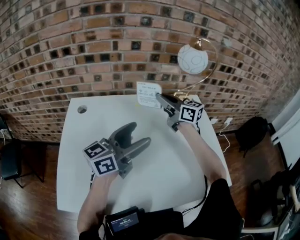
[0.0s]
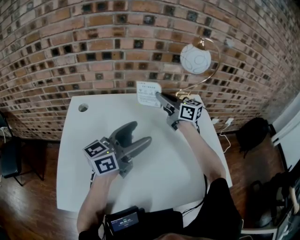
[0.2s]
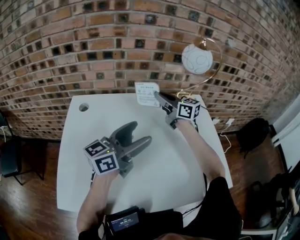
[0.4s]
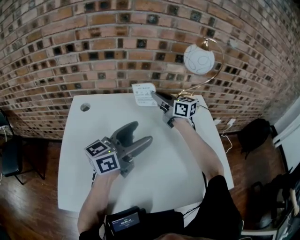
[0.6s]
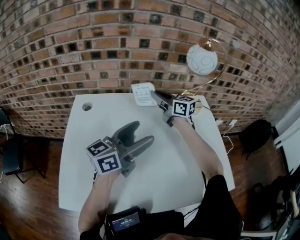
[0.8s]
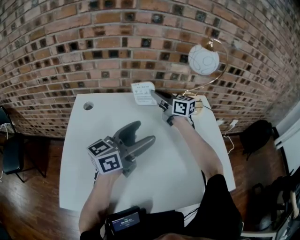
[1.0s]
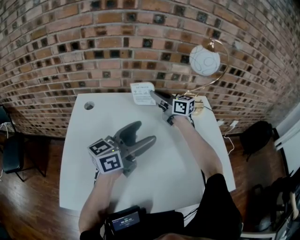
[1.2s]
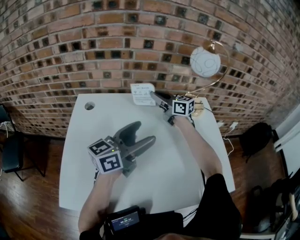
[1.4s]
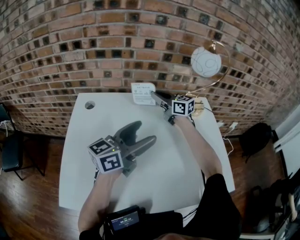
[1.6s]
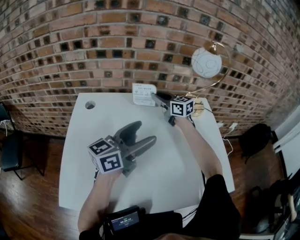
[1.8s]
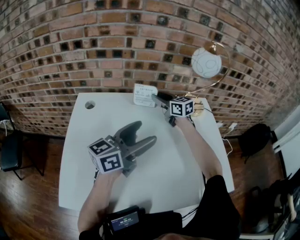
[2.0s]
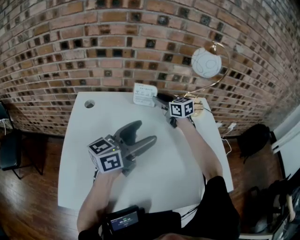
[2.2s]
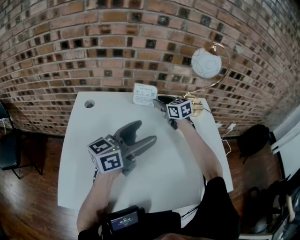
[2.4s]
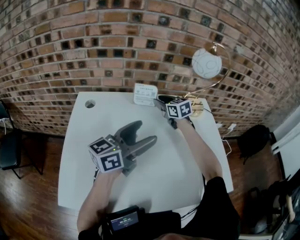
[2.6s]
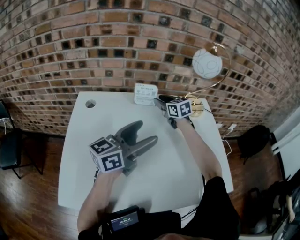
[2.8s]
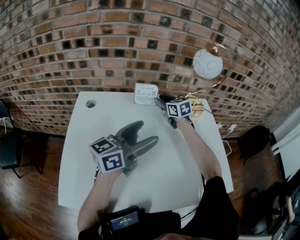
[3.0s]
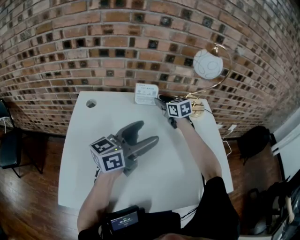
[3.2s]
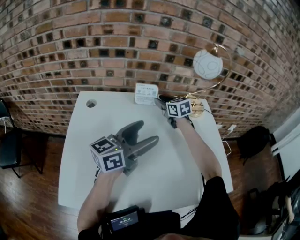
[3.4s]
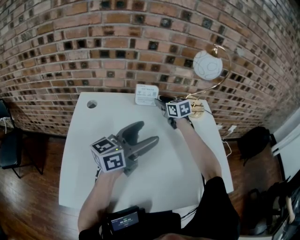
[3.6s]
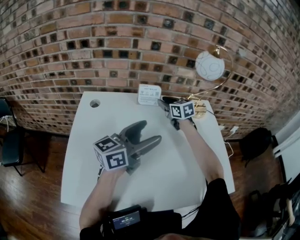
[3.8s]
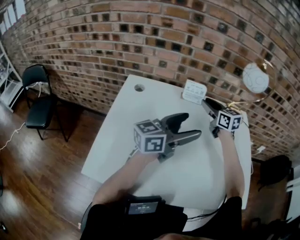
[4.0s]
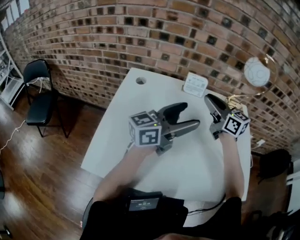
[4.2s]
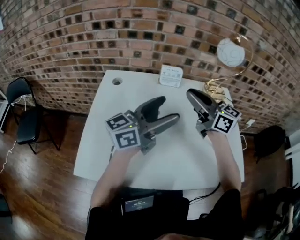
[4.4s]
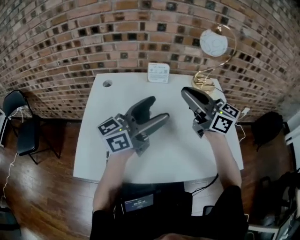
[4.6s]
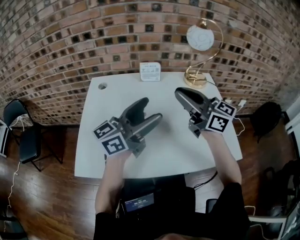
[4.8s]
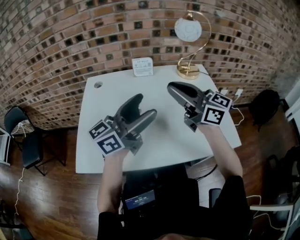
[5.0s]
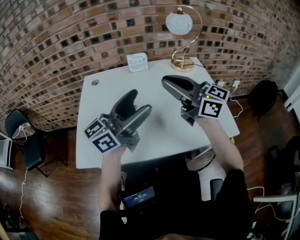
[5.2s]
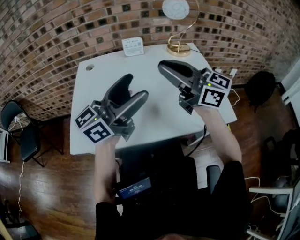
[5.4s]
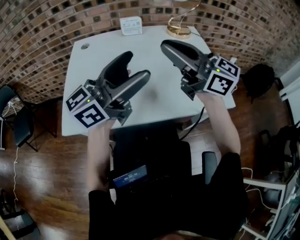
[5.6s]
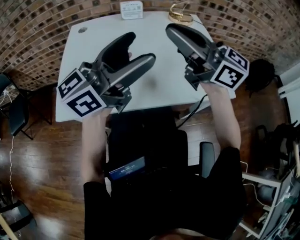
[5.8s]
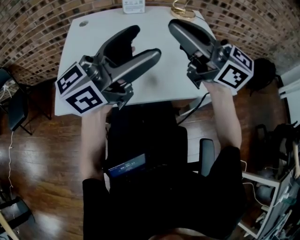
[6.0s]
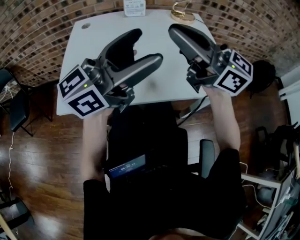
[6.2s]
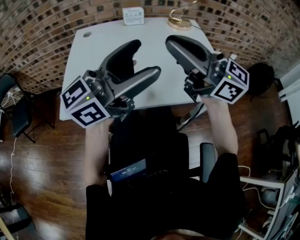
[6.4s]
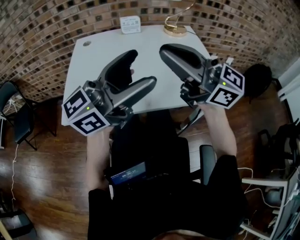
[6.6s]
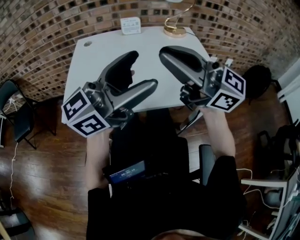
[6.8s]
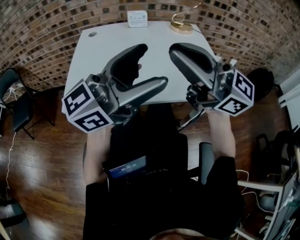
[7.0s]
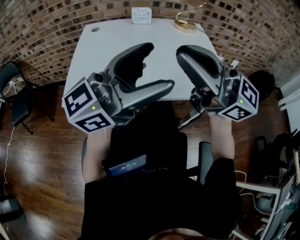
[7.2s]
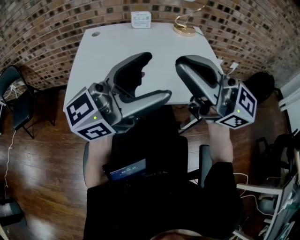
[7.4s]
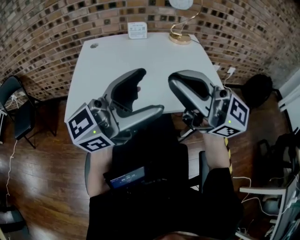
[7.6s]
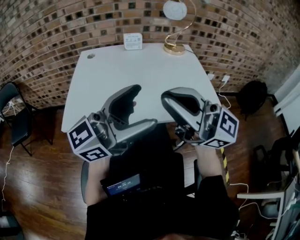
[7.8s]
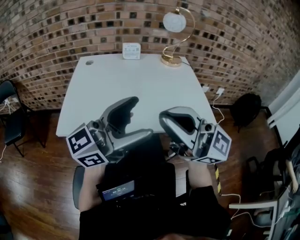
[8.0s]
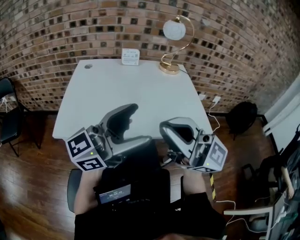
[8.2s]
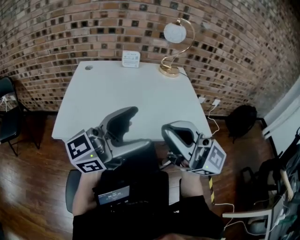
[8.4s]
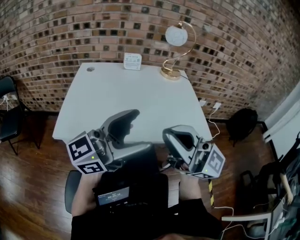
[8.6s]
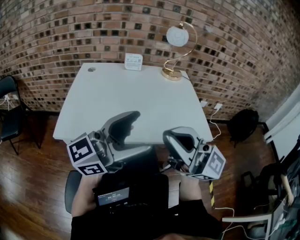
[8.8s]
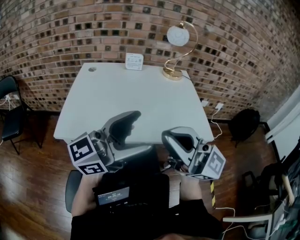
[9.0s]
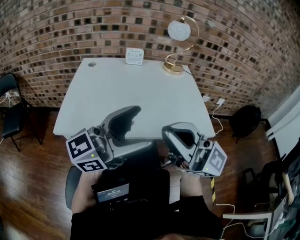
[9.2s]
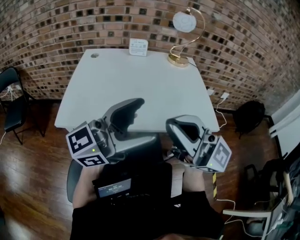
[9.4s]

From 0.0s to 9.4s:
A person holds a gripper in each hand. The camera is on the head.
From 0.0s to 1.6s: The right gripper travels forward, to the left and downward by some 10 cm.
From 1.6s to 3.2s: The right gripper shifts by roughly 5 cm, rotates roughly 30 degrees, and opens its fingers.
From 3.2s to 4.8s: The right gripper travels backward and upward by approximately 35 cm, tilts its fingers about 30 degrees upward, and closes its fingers. The left gripper shifts about 10 cm backward and upward.
From 4.8s to 6.2s: The grippers both shift backward and upward by some 15 cm.
From 6.2s to 7.8s: The right gripper changes place by roughly 15 cm, while the left gripper changes place by approximately 10 cm.
From 7.8s to 9.4s: There are only small adjustments of the grippers.

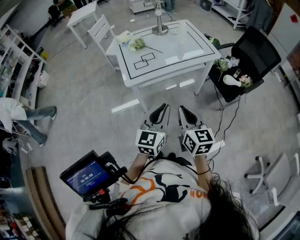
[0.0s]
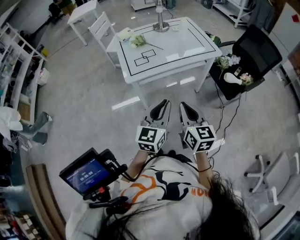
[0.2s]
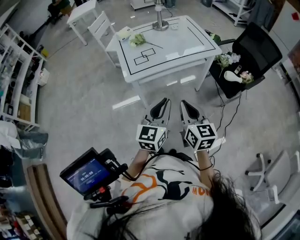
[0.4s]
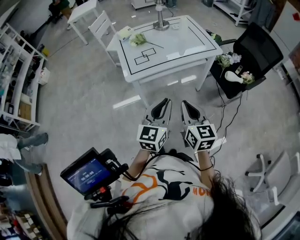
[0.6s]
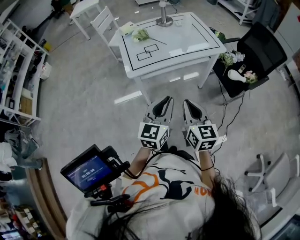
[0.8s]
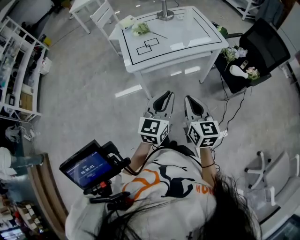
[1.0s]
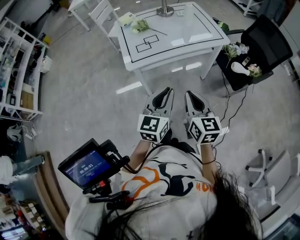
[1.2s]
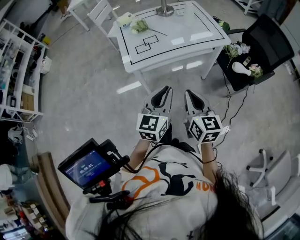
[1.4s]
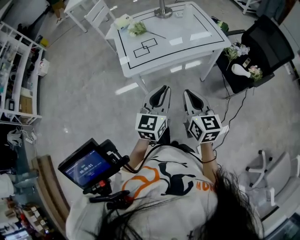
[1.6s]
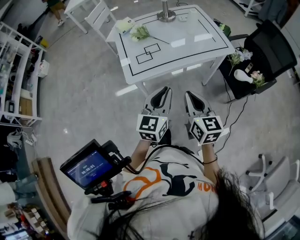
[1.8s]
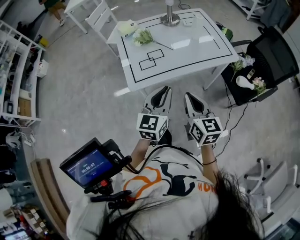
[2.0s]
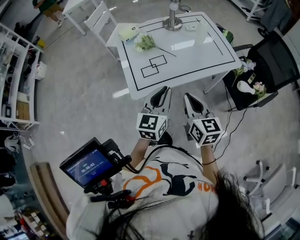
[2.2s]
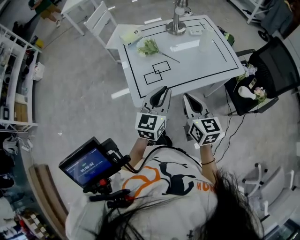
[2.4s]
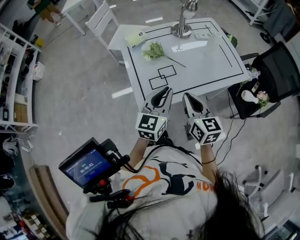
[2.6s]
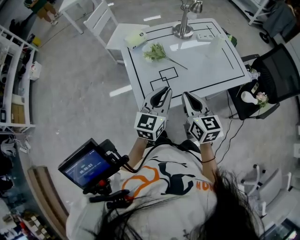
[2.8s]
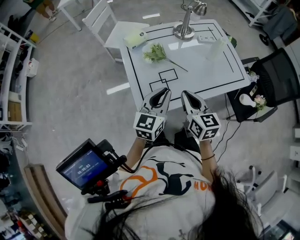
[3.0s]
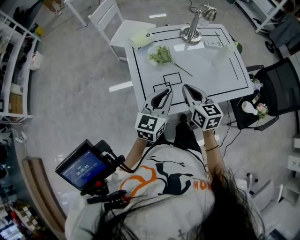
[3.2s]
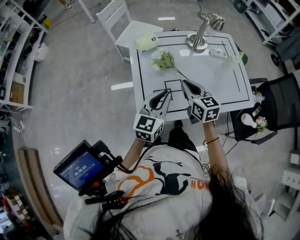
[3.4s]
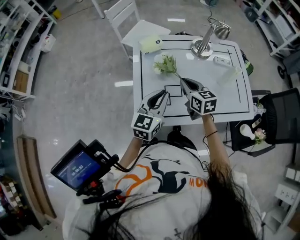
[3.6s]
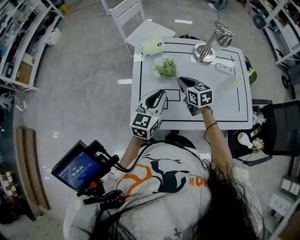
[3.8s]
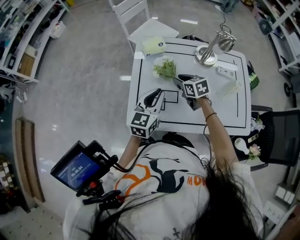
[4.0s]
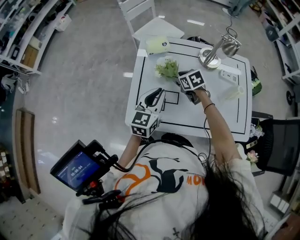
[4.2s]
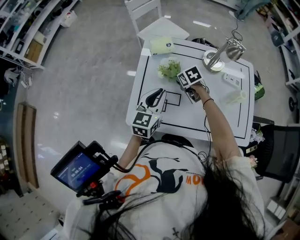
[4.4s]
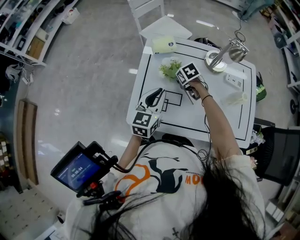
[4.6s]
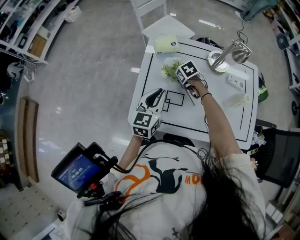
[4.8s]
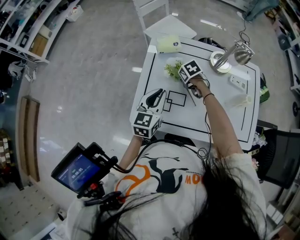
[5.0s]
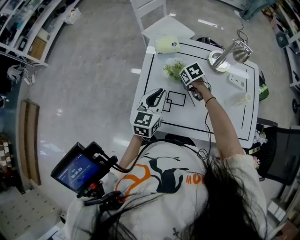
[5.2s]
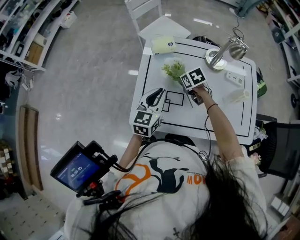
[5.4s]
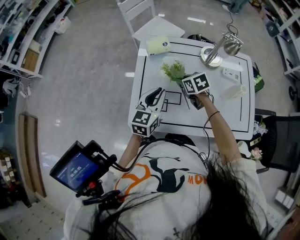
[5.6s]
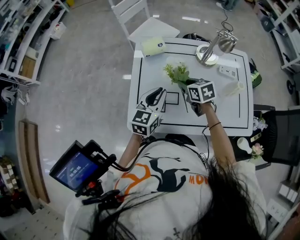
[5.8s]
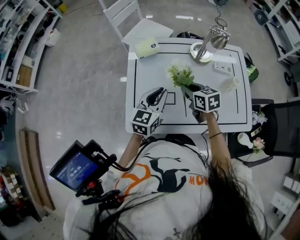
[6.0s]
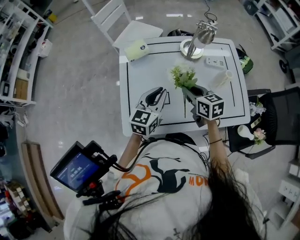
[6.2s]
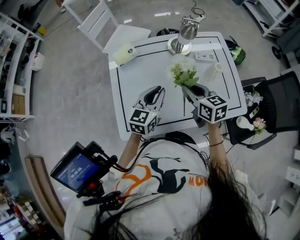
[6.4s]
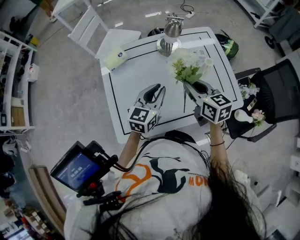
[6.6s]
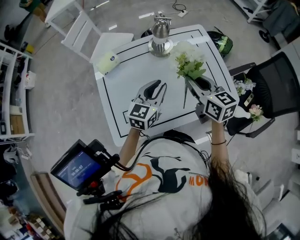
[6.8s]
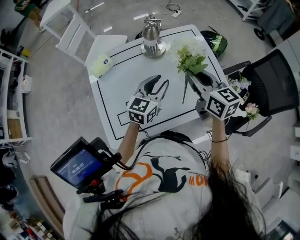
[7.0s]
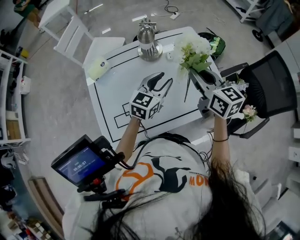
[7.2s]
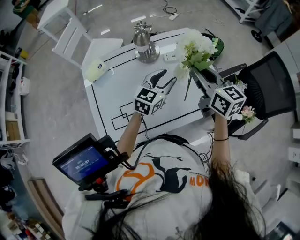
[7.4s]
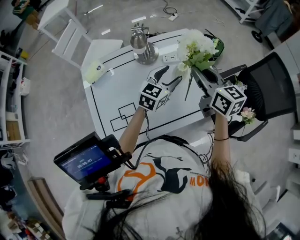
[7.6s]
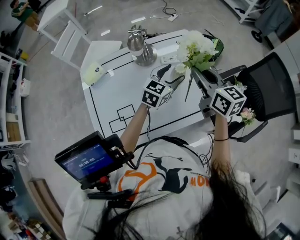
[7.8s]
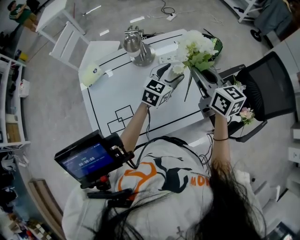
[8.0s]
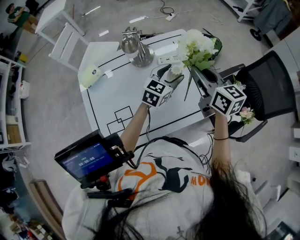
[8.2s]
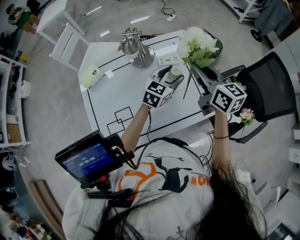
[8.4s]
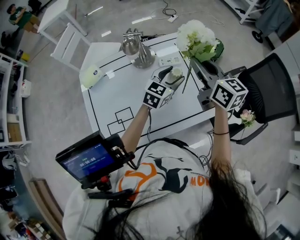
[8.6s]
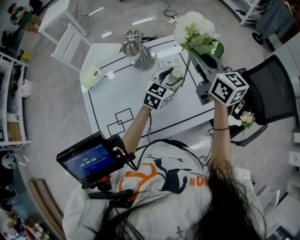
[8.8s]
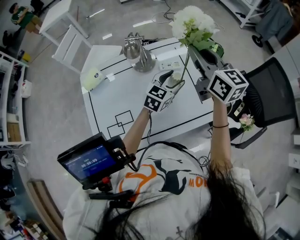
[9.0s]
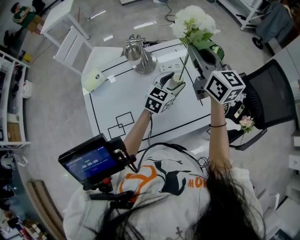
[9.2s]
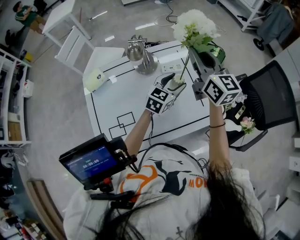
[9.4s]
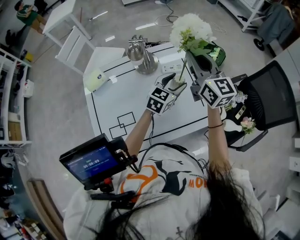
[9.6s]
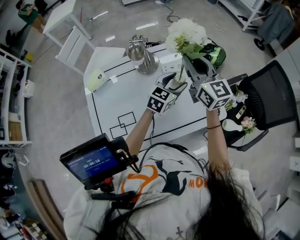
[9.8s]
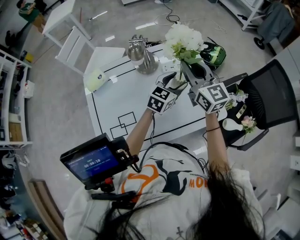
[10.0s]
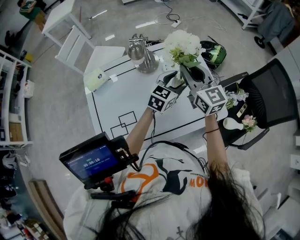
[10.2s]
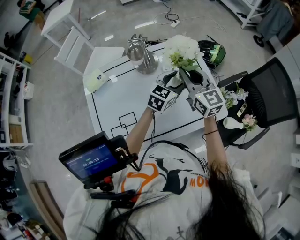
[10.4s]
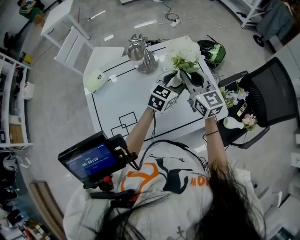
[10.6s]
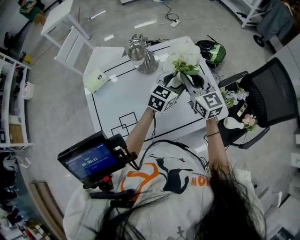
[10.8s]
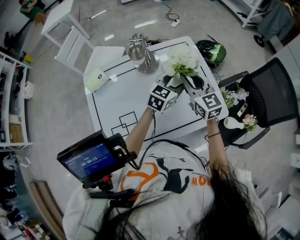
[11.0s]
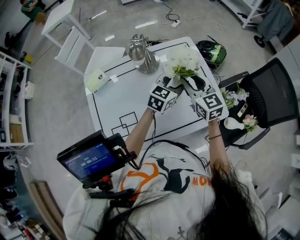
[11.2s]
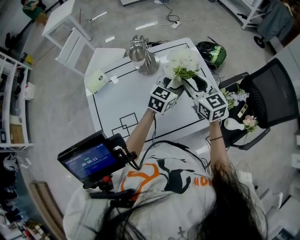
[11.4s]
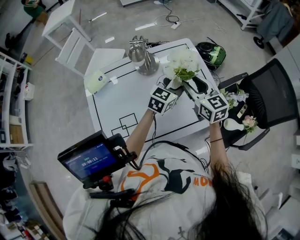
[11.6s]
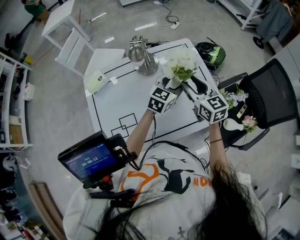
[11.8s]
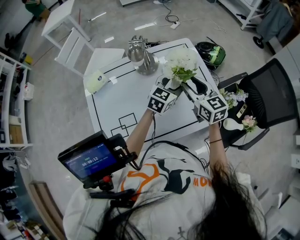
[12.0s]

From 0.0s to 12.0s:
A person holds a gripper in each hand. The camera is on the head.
From 0.0s to 1.6s: The grippers both shift forward by about 10 cm.
From 1.6s to 3.0s: Both grippers move forward and to the left, roughly 30 cm.
From 3.0s to 4.4s: The left gripper ends up about 10 cm from where it was, and changes its angle by about 30 degrees; the right gripper ends up about 30 cm from where it was, angles its fingers downward, by roughly 40 degrees, and opens up.
From 4.4s to 6.0s: The right gripper goes some 15 cm backward and upward, swivels roughly 30 degrees, and closes up.
From 6.0s to 7.6s: The left gripper ends up about 30 cm from where it was, swivels about 30 degrees, and opens up, while the right gripper ends up some 30 cm from where it was, and changes its angle by approximately 40 degrees.
From 7.6s to 9.0s: The right gripper is displaced upward and forward by about 10 cm.
From 9.0s to 10.4s: The right gripper goes approximately 10 cm downward.
From 10.4s to 12.0s: The right gripper travels downward by roughly 5 cm, and opens its fingers.

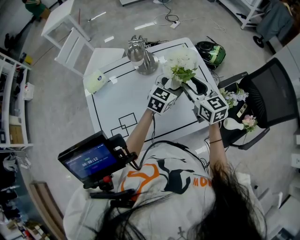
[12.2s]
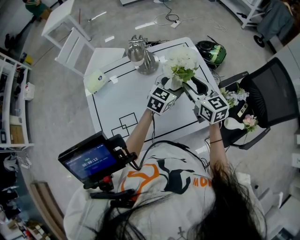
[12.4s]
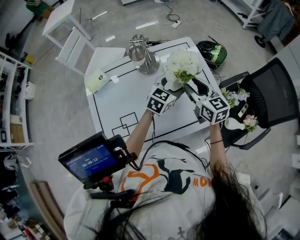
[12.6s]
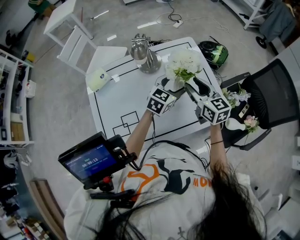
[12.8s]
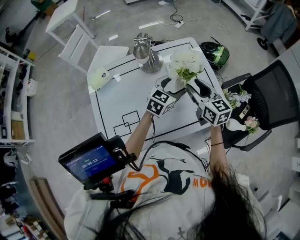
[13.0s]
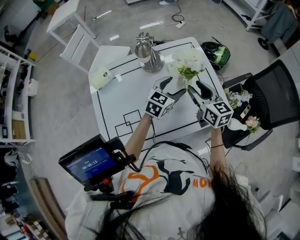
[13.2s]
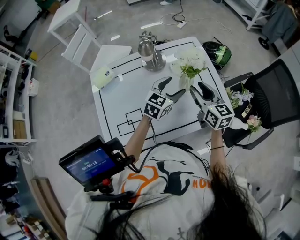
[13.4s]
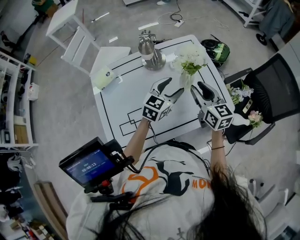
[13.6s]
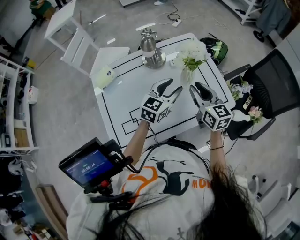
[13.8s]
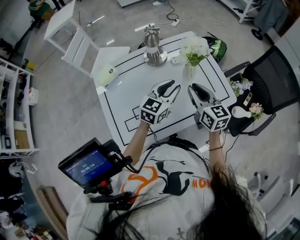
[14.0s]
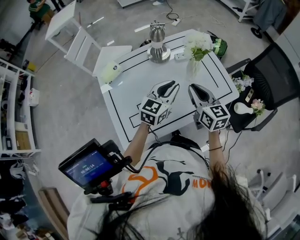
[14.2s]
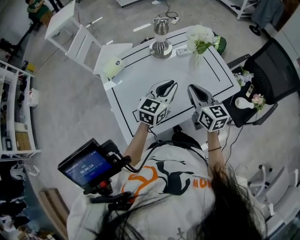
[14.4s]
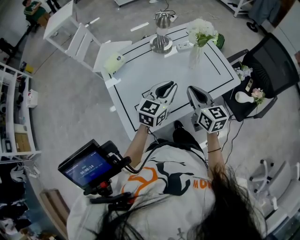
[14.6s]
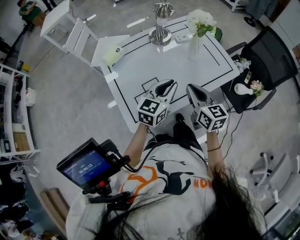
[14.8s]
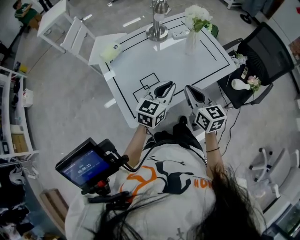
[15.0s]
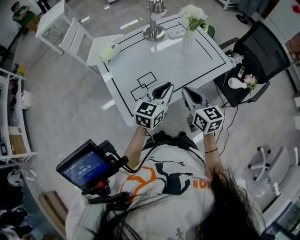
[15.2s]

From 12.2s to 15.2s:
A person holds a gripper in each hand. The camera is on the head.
From 12.2s to 13.8s: The right gripper moves backward, roughly 5 cm, while the left gripper goes roughly 10 cm backward and to the left.
From 13.8s to 15.2s: Both grippers move backward, roughly 25 cm. The left gripper closes up. The right gripper closes its fingers.
